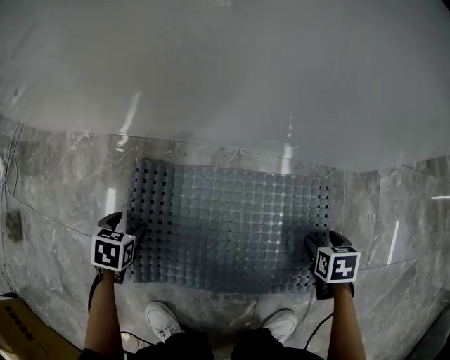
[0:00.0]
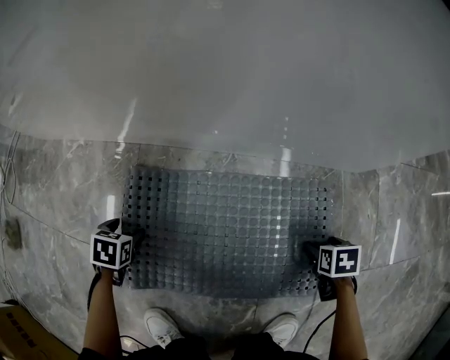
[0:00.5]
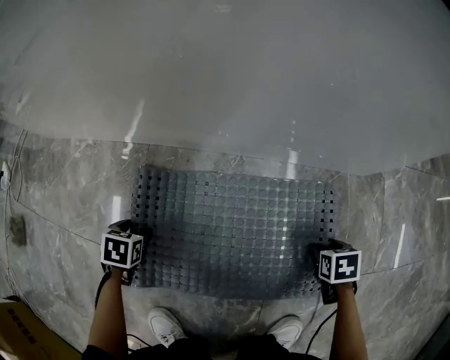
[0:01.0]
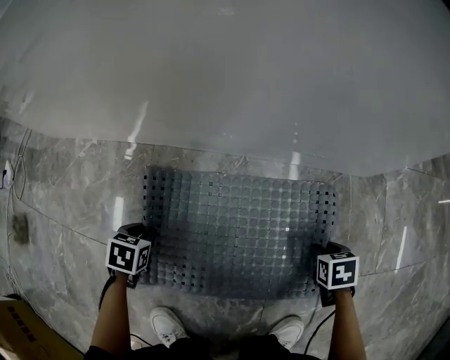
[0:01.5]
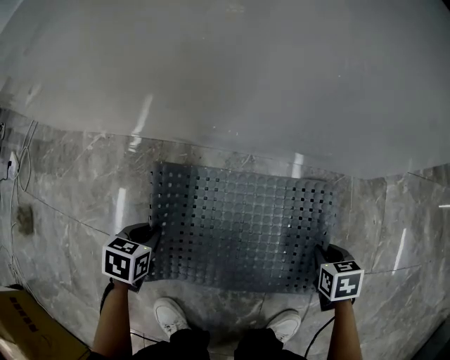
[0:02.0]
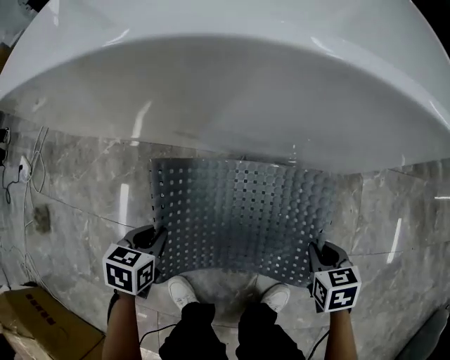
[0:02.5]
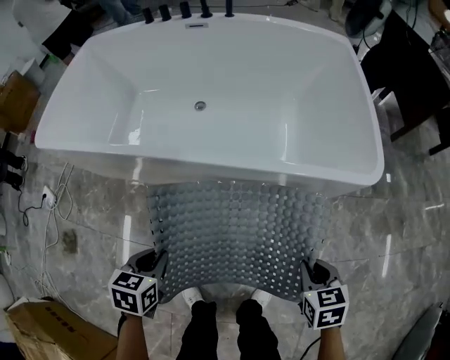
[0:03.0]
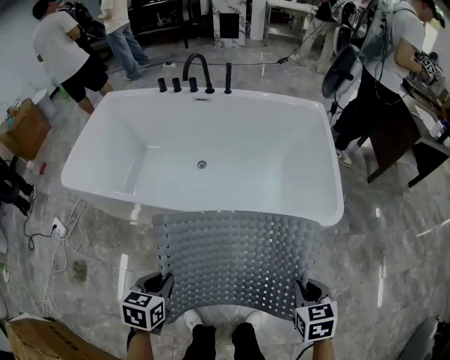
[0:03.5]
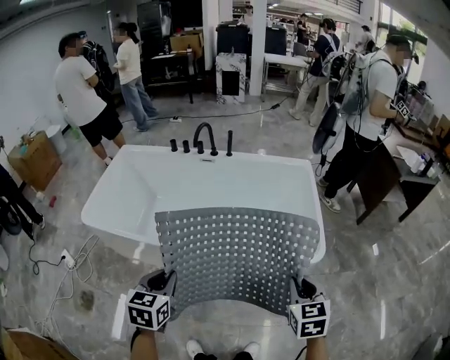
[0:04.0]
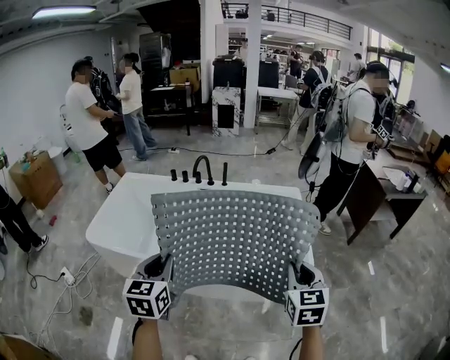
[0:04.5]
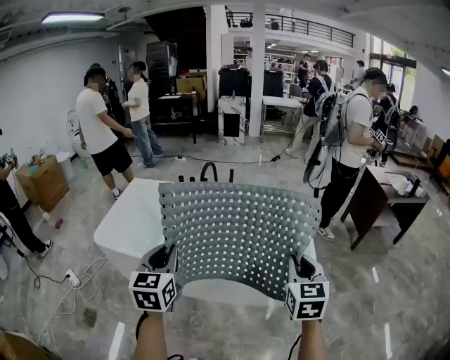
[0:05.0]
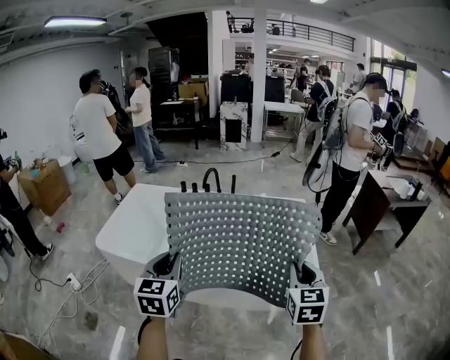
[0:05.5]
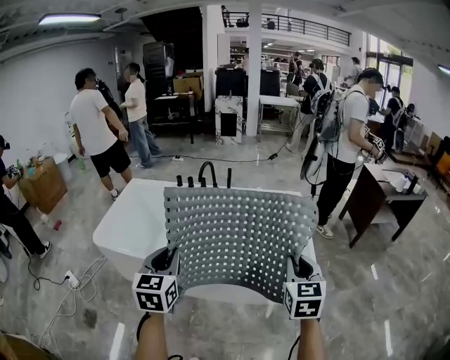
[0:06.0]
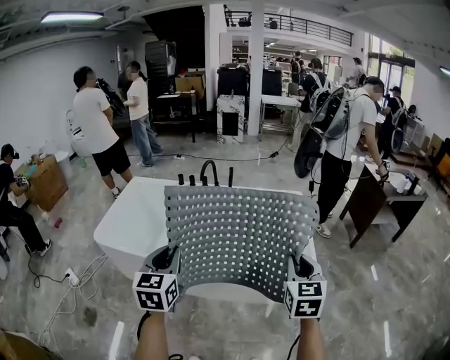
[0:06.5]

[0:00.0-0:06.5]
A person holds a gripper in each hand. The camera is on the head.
0:00.0 to 0:02.0: The left gripper ends up roughly 5 cm from where it was, and closes; the right gripper closes up.
0:02.0 to 0:04.5: The two grippers go roughly 1 m upward. The left gripper points its fingers roughly 50 degrees further upward. Meanwhile the right gripper points its fingers roughly 50 degrees further upward.
0:04.5 to 0:06.5: There are only small adjustments of the grippers.

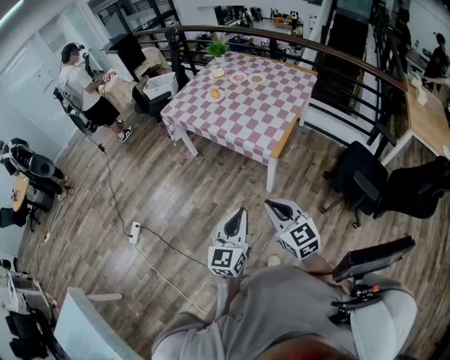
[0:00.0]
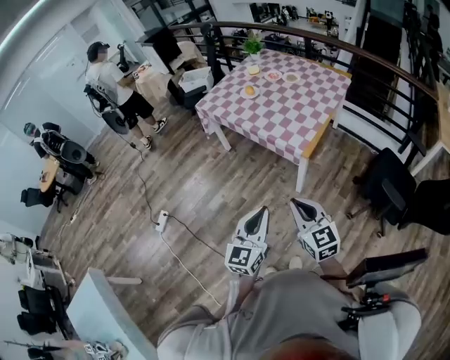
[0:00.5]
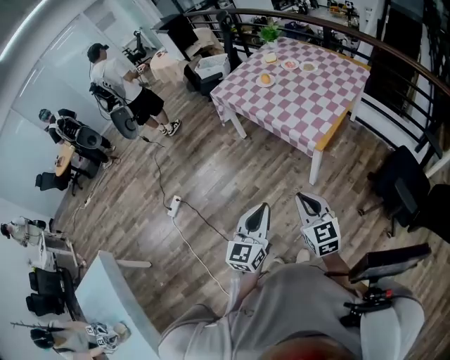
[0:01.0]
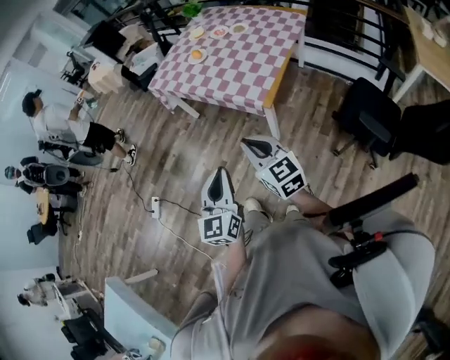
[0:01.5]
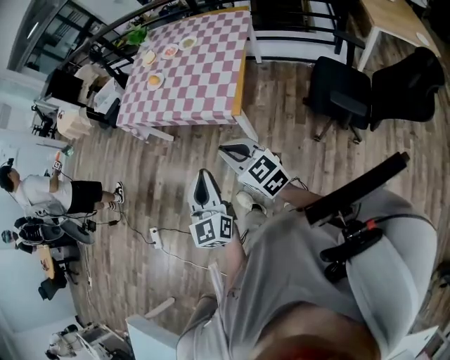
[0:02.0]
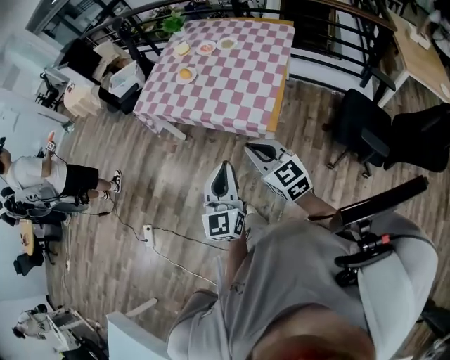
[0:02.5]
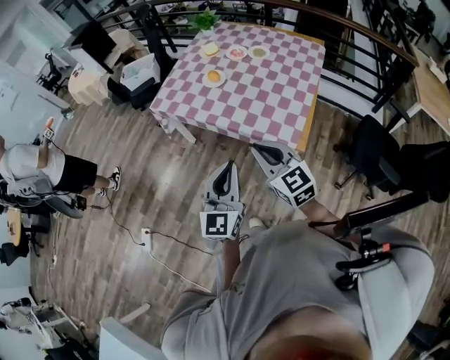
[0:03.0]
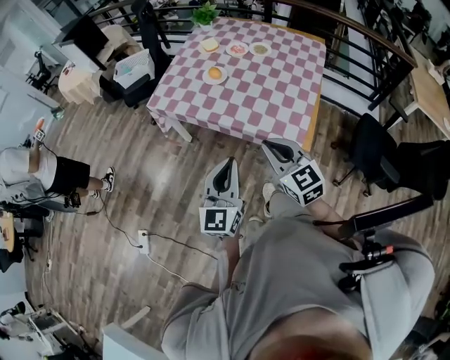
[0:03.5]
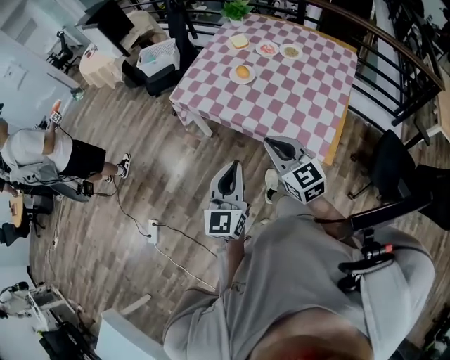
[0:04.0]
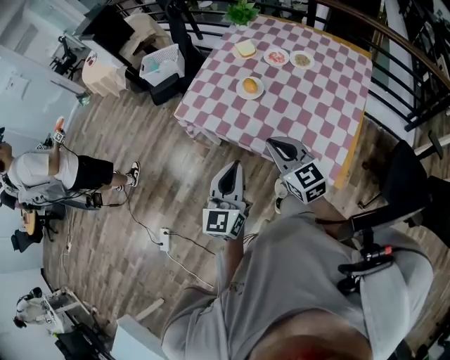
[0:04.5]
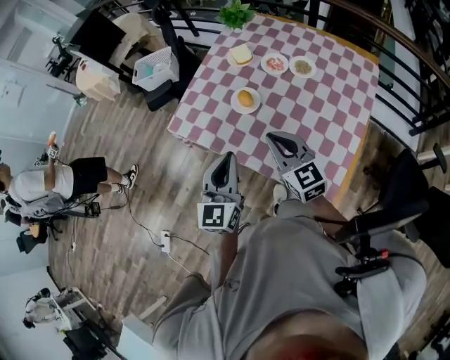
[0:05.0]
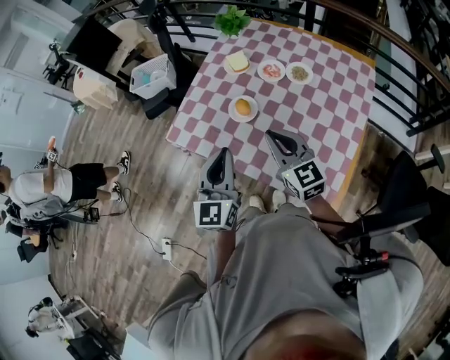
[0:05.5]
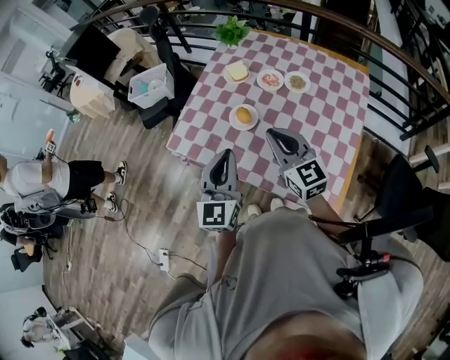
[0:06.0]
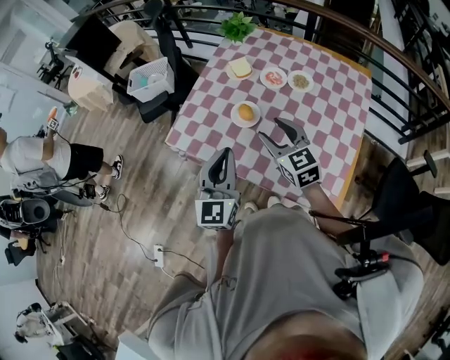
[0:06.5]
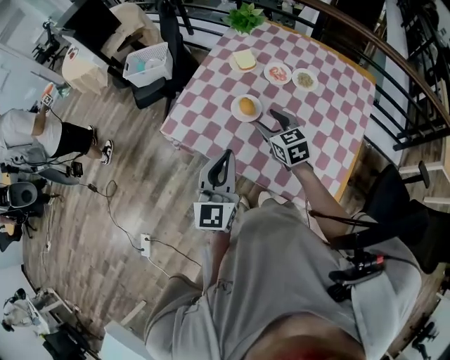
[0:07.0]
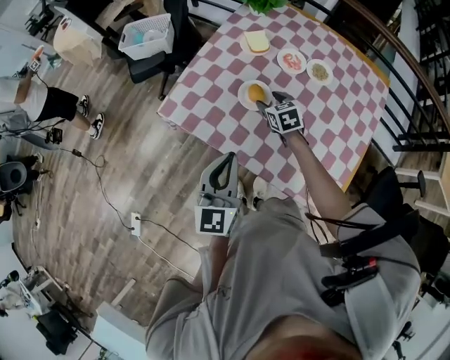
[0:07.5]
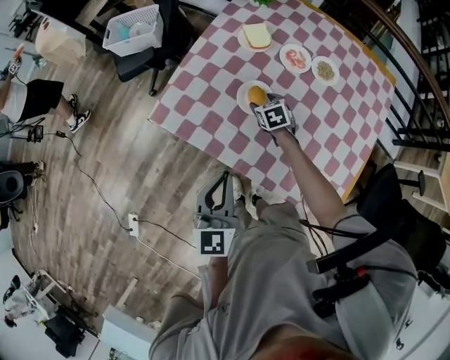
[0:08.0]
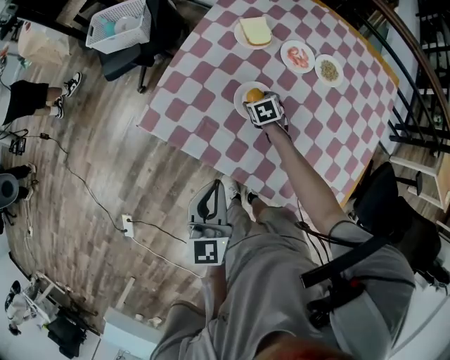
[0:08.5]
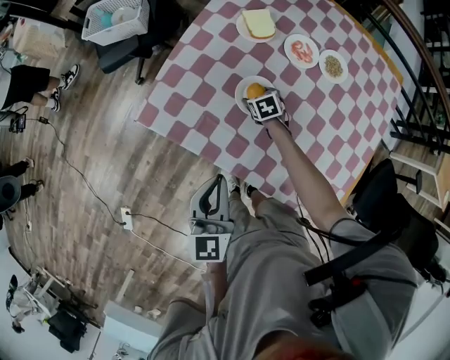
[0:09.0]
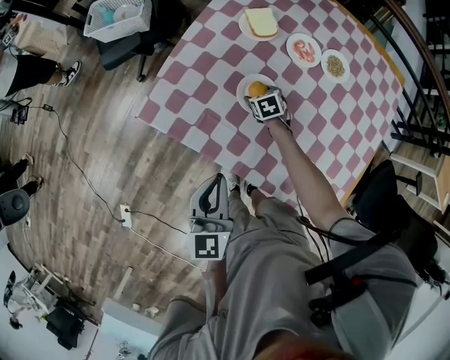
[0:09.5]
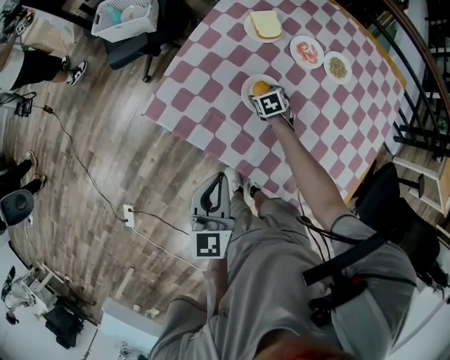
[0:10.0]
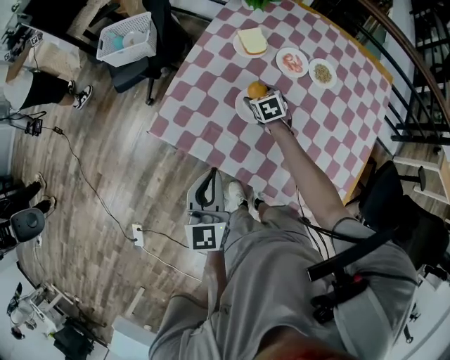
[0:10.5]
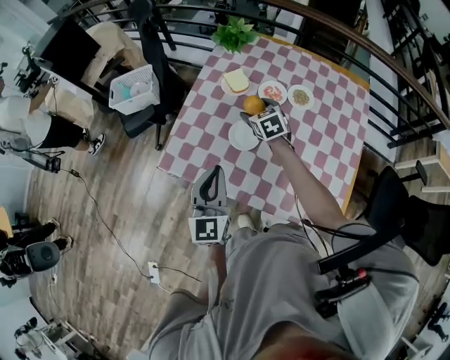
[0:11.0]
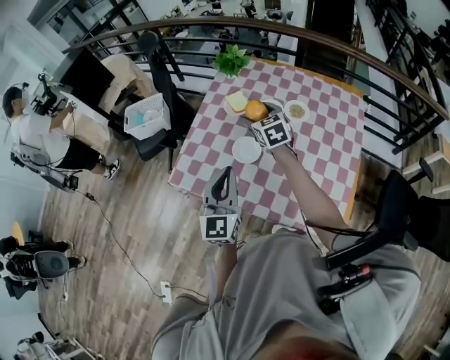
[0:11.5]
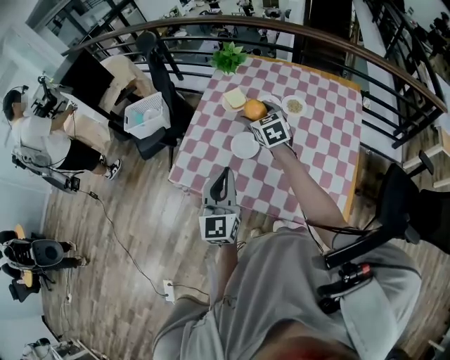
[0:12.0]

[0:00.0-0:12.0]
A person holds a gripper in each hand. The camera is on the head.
0:00.0 to 0:02.0: Both grippers move forward and to the right, roughly 10 cm.
0:02.0 to 0:04.0: The two grippers go approximately 40 cm forward and to the left.
0:04.0 to 0:06.0: The grippers both shift forward by about 30 cm.
0:06.0 to 0:08.0: The right gripper moves downward and forward, roughly 40 cm, angles its fingers downward, by some 50 degrees, and opens its fingers. Meanwhile the left gripper travels downward, to the left and forward by about 15 cm.
0:08.0 to 0:10.0: The right gripper goes about 10 cm downward; the left gripper goes approximately 5 cm downward.
0:10.0 to 0:12.0: The right gripper is displaced upward by roughly 40 cm, and tips its fingers upward by roughly 40 degrees; the left gripper shifts roughly 15 cm upward and to the right, and changes its angle by some 30 degrees.

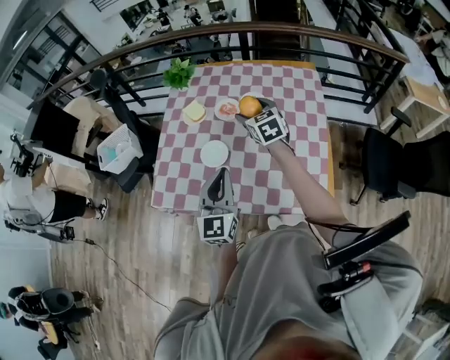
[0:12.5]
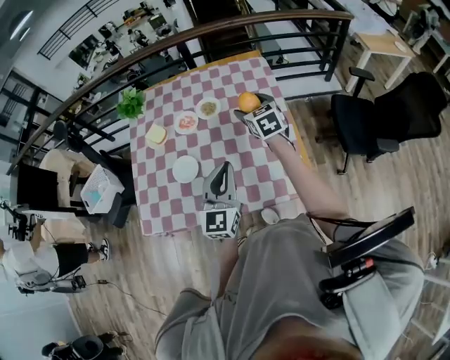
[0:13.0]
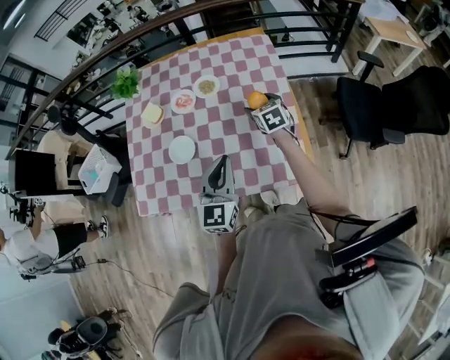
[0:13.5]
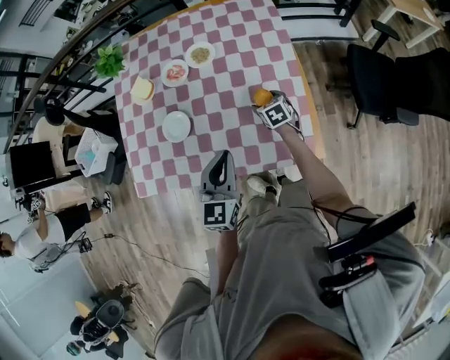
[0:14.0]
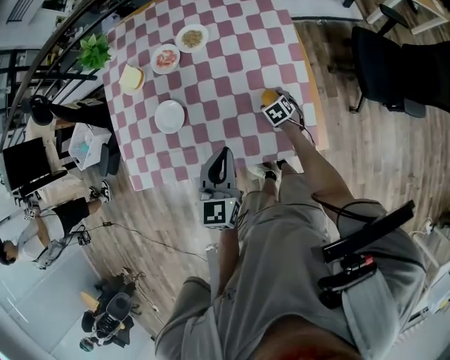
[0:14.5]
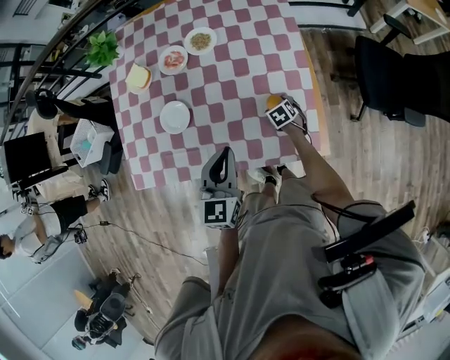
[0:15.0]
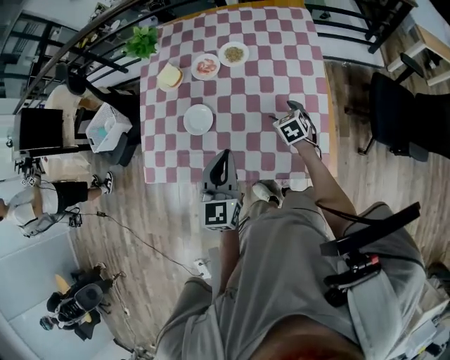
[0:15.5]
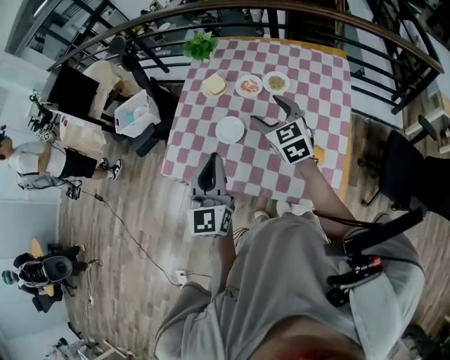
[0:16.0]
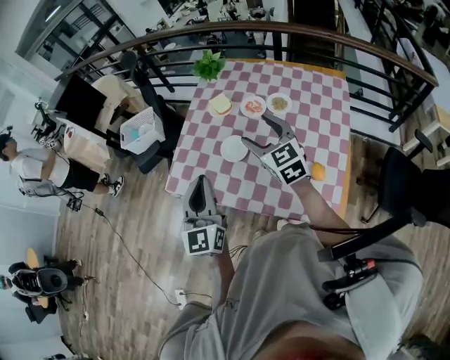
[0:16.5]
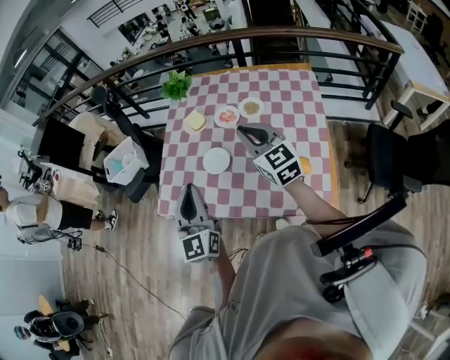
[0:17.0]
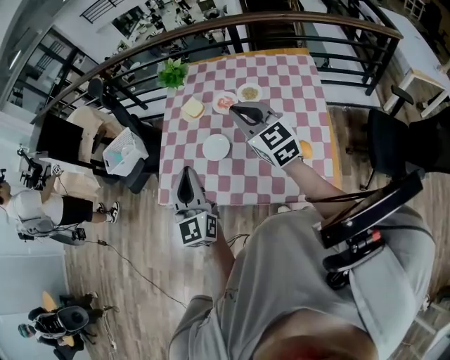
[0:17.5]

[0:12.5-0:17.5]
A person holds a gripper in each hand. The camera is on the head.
0:12.5 to 0:15.0: The right gripper travels downward and to the right by roughly 50 cm, and angles its fingers downward, by some 40 degrees. The left gripper goes some 20 cm to the right and downward, and swivels some 30 degrees.
0:15.0 to 0:17.5: The left gripper moves to the left and upward, approximately 30 cm, and swivels approximately 40 degrees; the right gripper travels upward and to the left by some 60 cm, points its fingers about 60 degrees further upward, and closes its fingers.

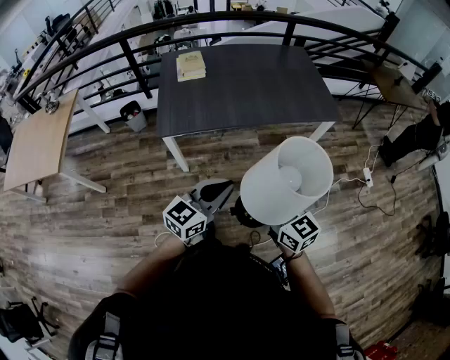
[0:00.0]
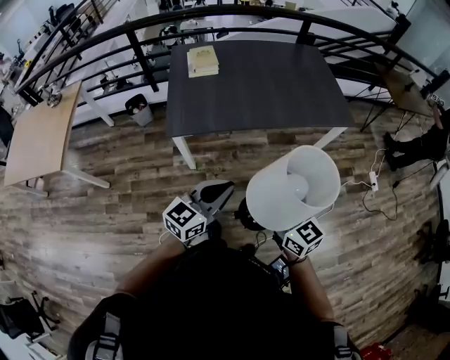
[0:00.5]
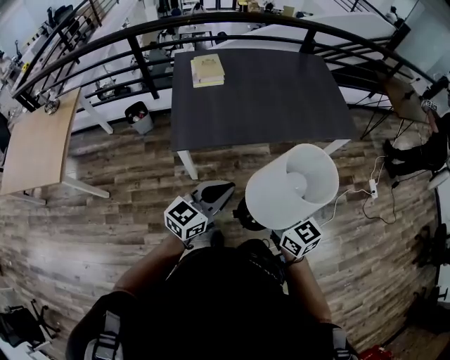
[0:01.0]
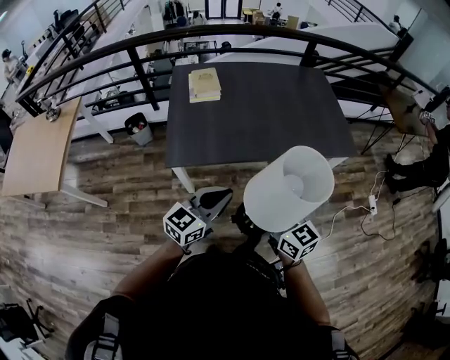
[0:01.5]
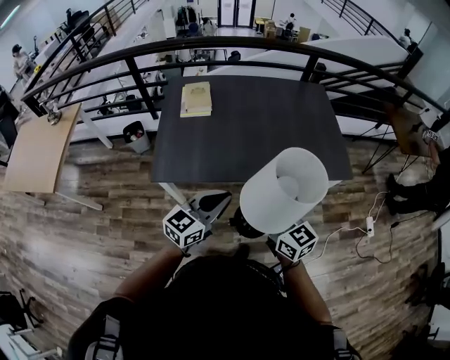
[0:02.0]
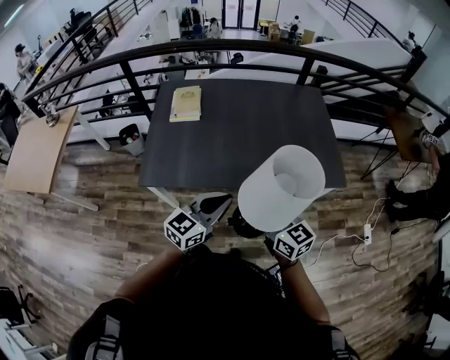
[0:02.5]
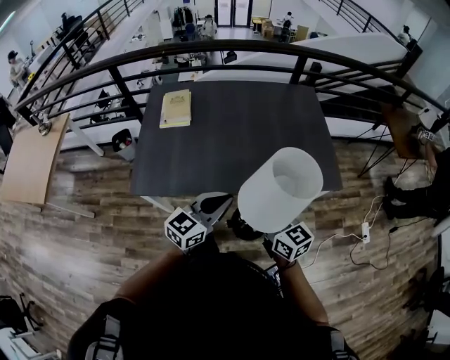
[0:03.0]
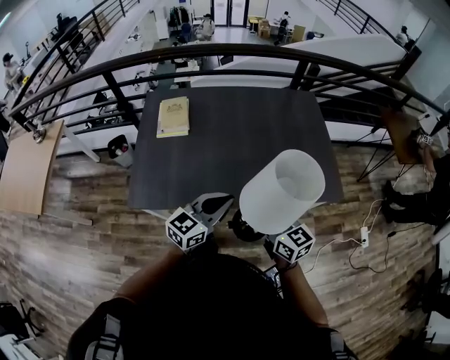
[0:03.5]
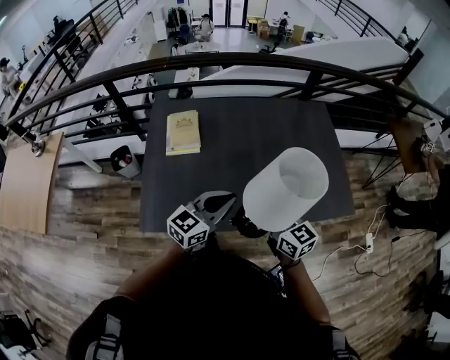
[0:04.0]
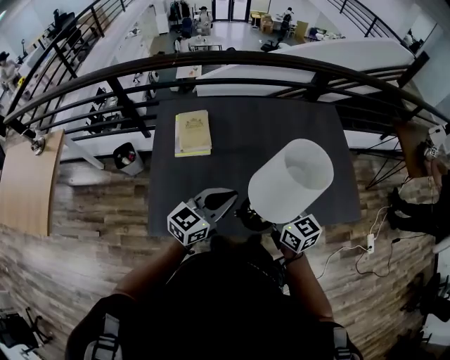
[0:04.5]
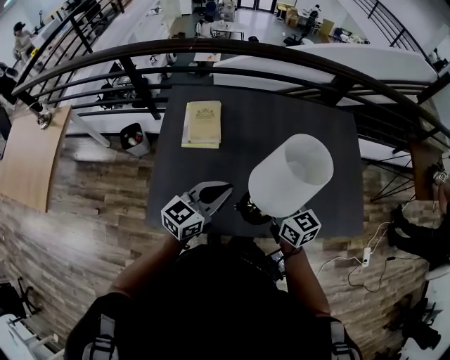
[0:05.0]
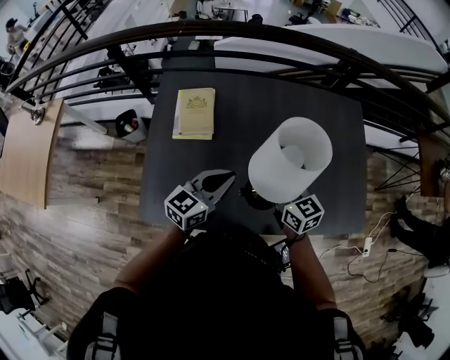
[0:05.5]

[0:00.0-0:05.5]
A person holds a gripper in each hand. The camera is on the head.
0:00.0 to 0:02.0: The grippers both shift forward by roughly 25 cm.
0:02.0 to 0:03.5: Both grippers travel together forward and to the right, some 20 cm.
0:03.5 to 0:05.5: The left gripper heads forward and to the left, covering roughly 30 cm, while the right gripper heads forward, covering about 30 cm.
